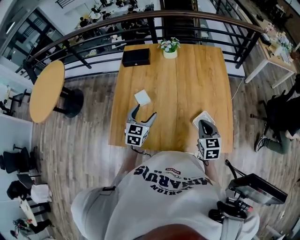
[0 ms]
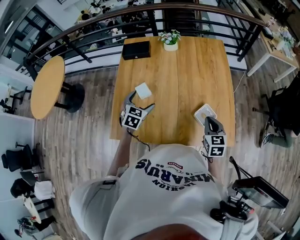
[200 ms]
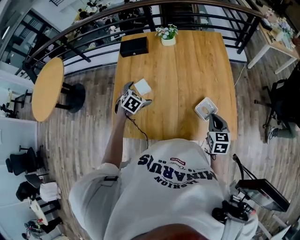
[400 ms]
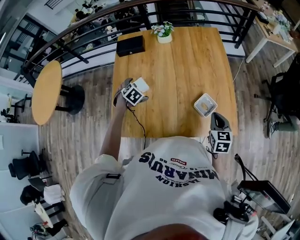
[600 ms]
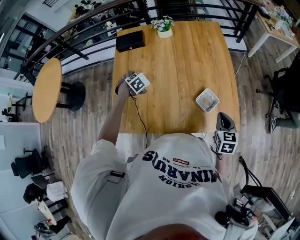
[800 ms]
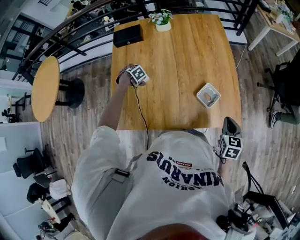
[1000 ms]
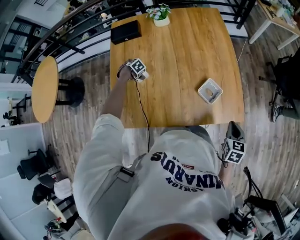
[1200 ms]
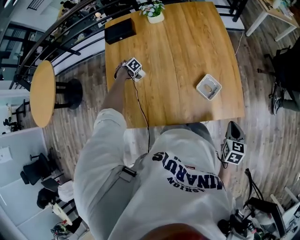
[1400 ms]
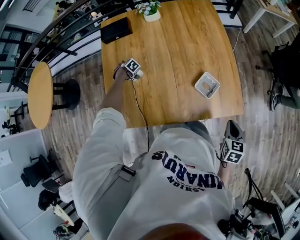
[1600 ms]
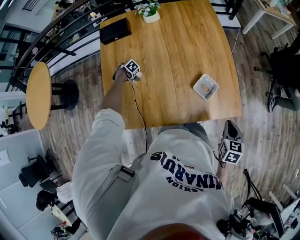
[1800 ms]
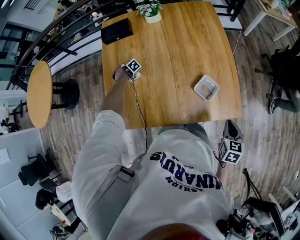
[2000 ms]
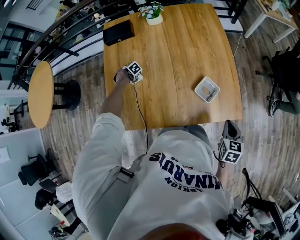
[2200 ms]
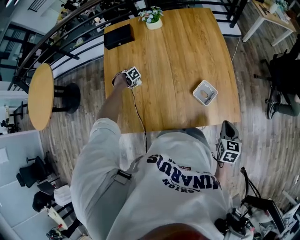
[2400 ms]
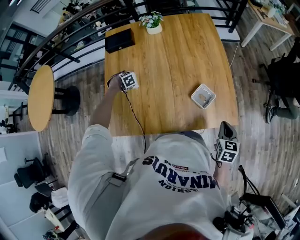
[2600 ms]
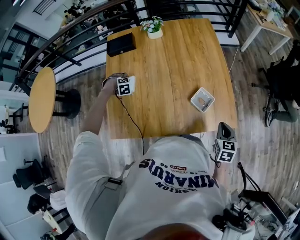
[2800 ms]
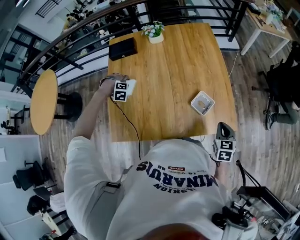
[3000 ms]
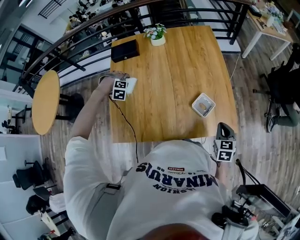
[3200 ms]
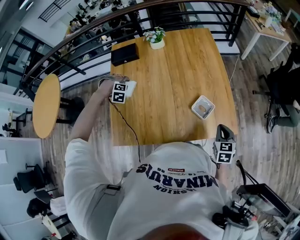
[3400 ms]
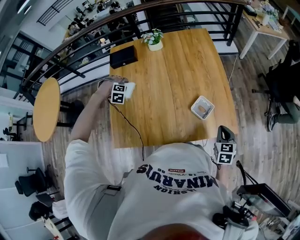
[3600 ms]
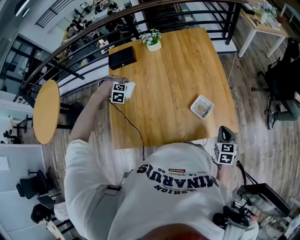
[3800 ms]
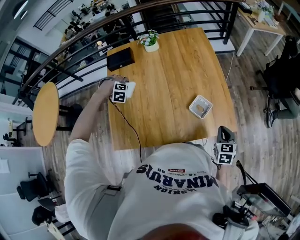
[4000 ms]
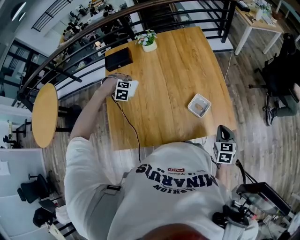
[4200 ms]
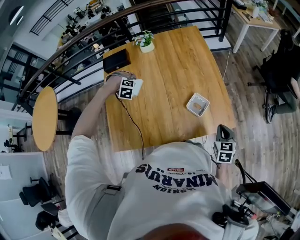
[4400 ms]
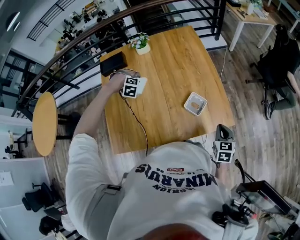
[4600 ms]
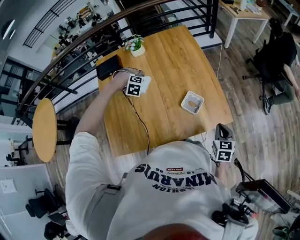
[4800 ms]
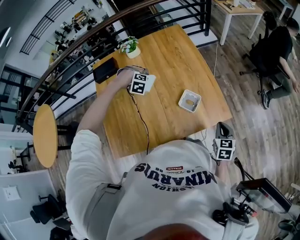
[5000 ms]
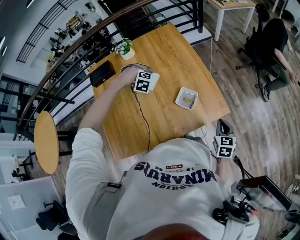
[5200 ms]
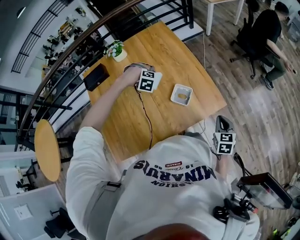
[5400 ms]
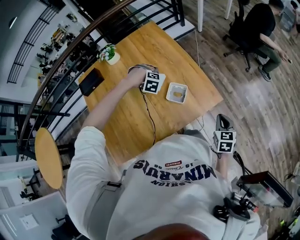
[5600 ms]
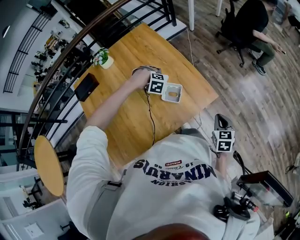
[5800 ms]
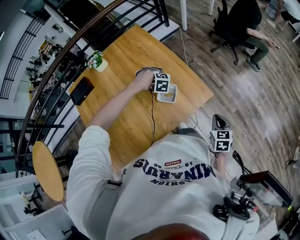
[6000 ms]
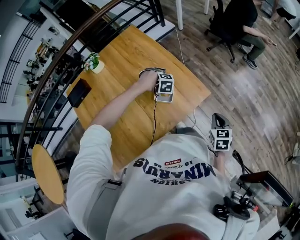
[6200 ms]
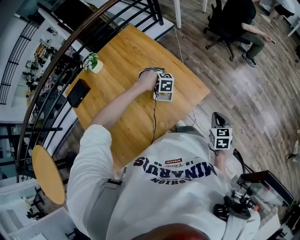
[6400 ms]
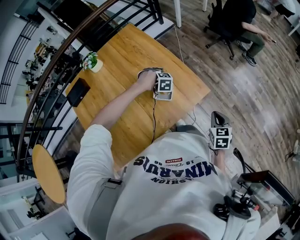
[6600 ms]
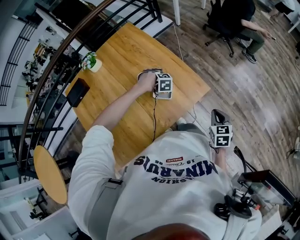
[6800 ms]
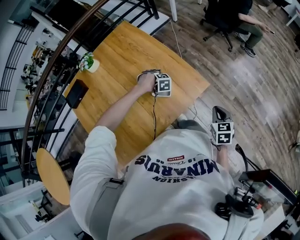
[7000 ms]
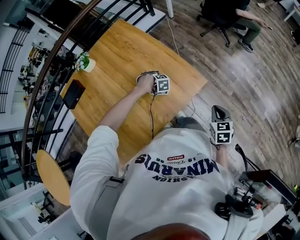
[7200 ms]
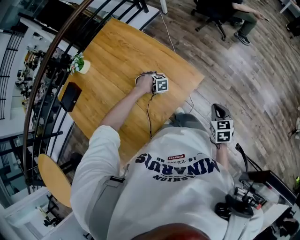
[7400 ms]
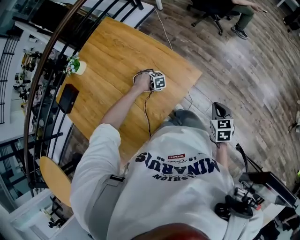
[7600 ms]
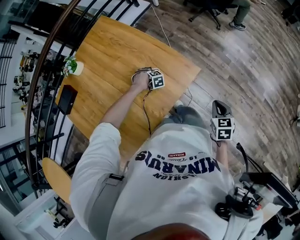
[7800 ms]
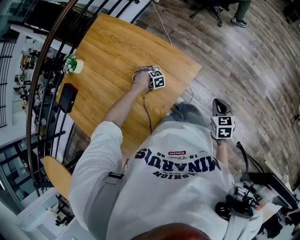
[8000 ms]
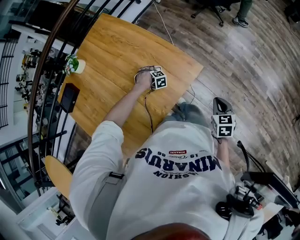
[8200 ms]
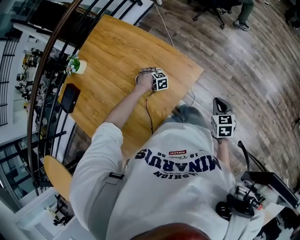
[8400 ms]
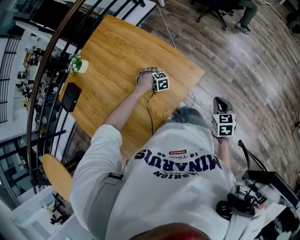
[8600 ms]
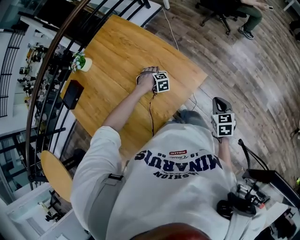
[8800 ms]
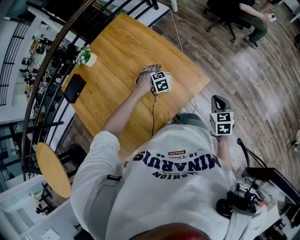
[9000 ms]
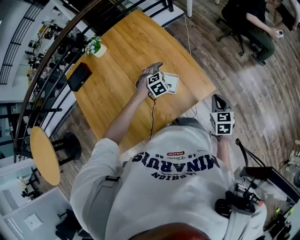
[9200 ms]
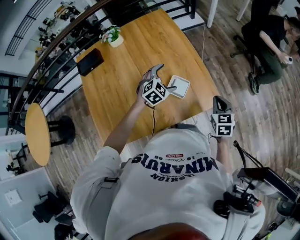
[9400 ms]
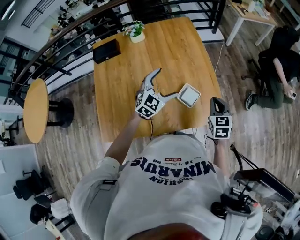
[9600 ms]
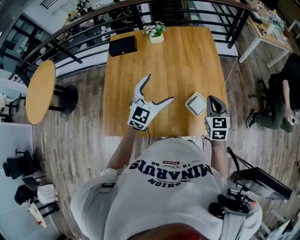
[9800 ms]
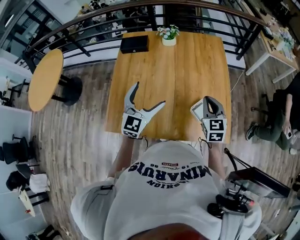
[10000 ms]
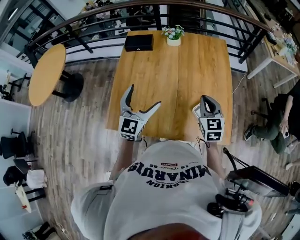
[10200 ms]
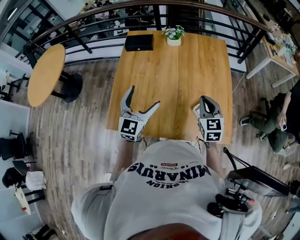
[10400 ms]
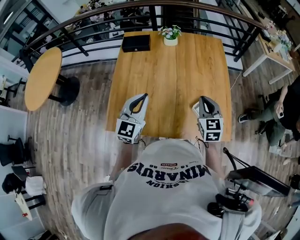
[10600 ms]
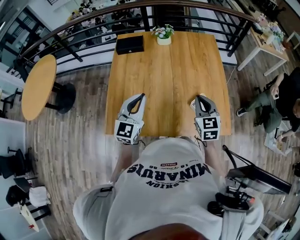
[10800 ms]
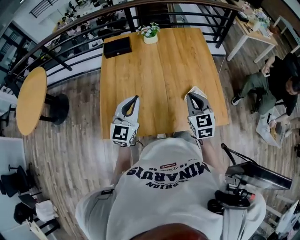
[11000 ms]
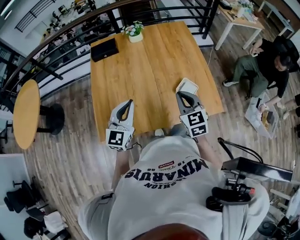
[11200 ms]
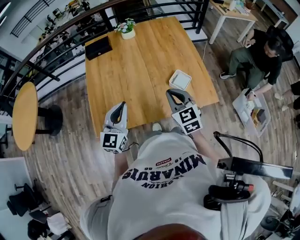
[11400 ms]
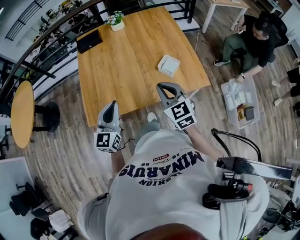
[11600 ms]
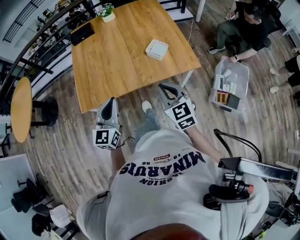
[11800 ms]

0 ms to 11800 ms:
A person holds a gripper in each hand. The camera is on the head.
0 ms to 1400 ms: The left gripper goes approximately 30 cm downward, tilts its fingers about 60 degrees downward, and opens. The right gripper changes place by some 20 cm, and changes its angle by approximately 30 degrees.
1400 ms to 3000 ms: The left gripper heads upward, covering approximately 15 cm, twists approximately 60 degrees clockwise, seen from behind, and closes up.
3000 ms to 4400 ms: The left gripper goes approximately 10 cm to the right.
4400 ms to 6000 ms: The right gripper moves roughly 15 cm, and changes its angle by approximately 20 degrees. Meanwhile the left gripper shifts by about 40 cm, and rotates some 20 degrees.
6000 ms to 7400 ms: The left gripper is displaced downward by roughly 15 cm.
7400 ms to 8800 ms: The grippers move only a little.
8800 ms to 10400 ms: The right gripper changes place by some 40 cm, and swivels roughly 60 degrees, while the left gripper heads upward, covering roughly 40 cm, and tips its fingers upward by approximately 80 degrees.
10400 ms to 11800 ms: Both grippers travel together backward, roughly 30 cm. The left gripper closes its fingers.

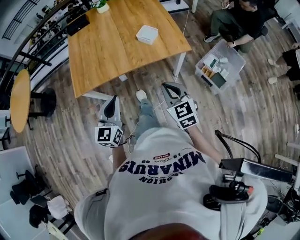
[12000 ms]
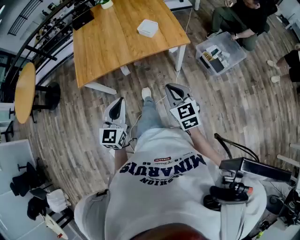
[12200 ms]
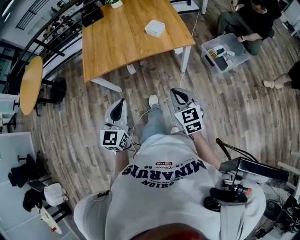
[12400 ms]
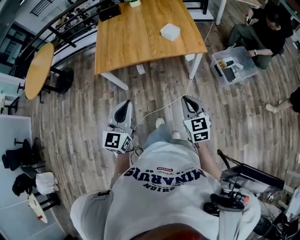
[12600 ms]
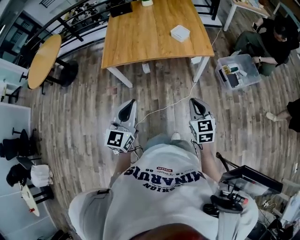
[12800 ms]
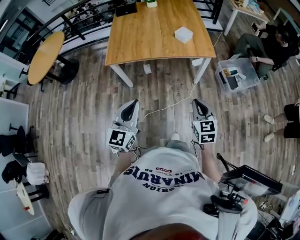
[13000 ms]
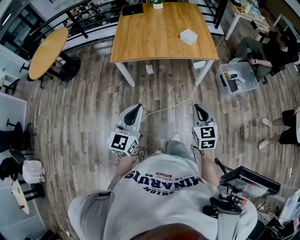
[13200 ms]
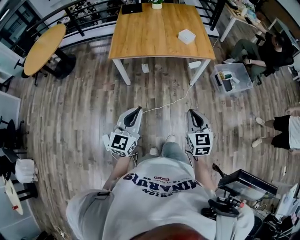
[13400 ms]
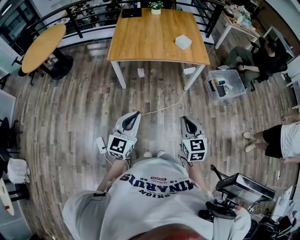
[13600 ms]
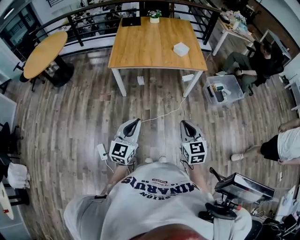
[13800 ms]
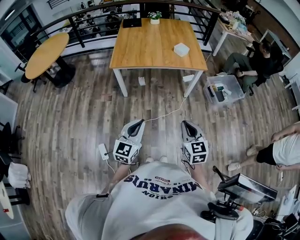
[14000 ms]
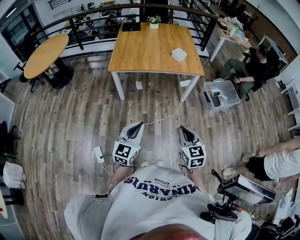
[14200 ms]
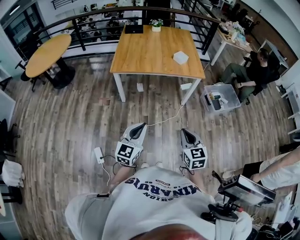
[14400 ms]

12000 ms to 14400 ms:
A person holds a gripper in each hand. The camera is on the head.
12000 ms to 13200 ms: The two grippers go approximately 30 cm backward.
13200 ms to 14400 ms: The two grippers go roughly 15 cm backward.

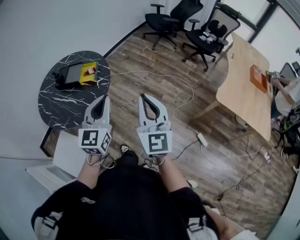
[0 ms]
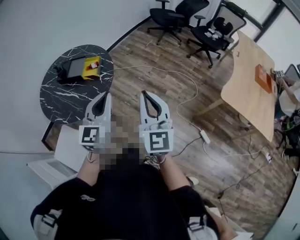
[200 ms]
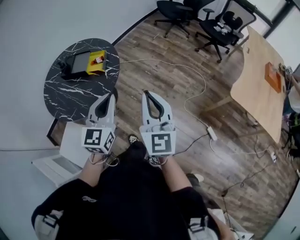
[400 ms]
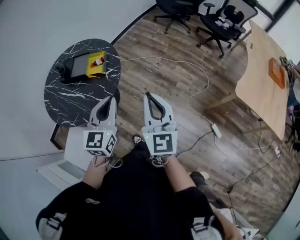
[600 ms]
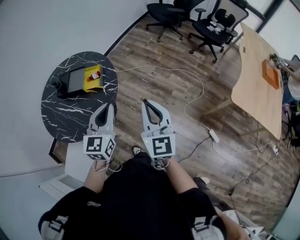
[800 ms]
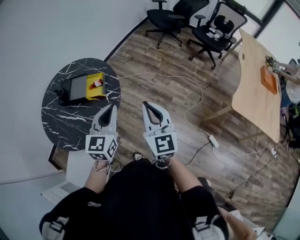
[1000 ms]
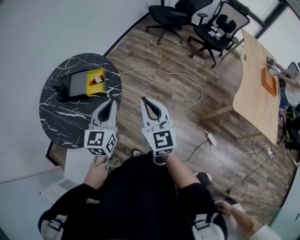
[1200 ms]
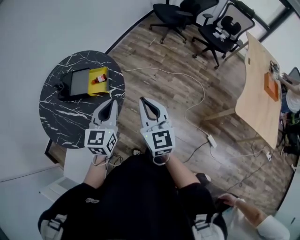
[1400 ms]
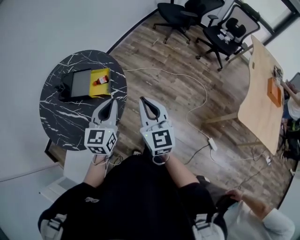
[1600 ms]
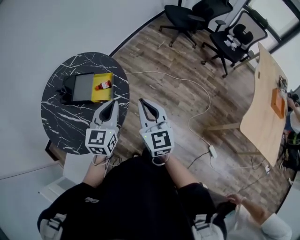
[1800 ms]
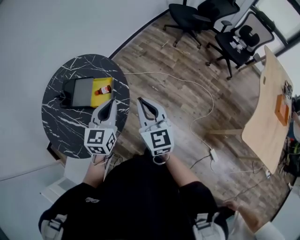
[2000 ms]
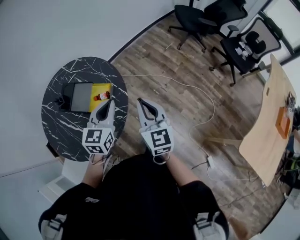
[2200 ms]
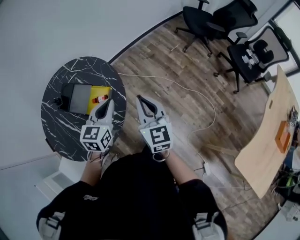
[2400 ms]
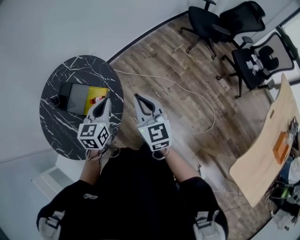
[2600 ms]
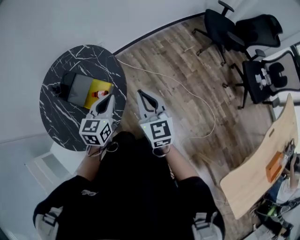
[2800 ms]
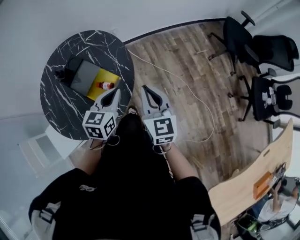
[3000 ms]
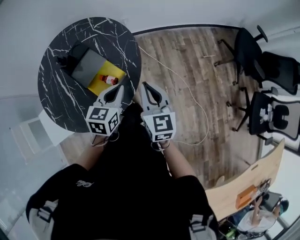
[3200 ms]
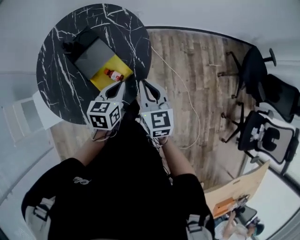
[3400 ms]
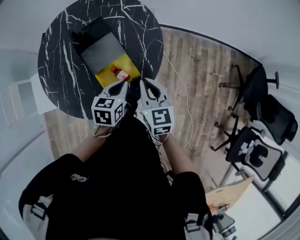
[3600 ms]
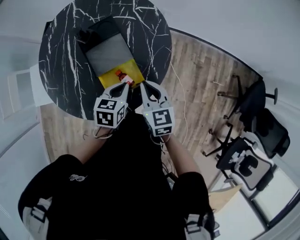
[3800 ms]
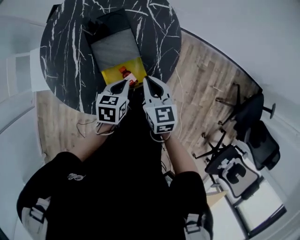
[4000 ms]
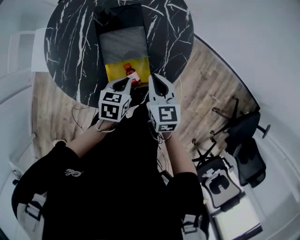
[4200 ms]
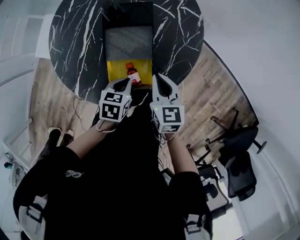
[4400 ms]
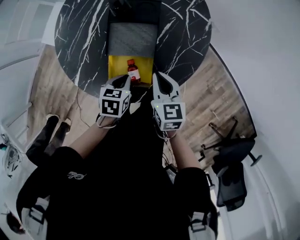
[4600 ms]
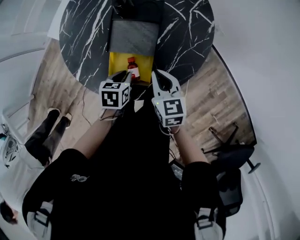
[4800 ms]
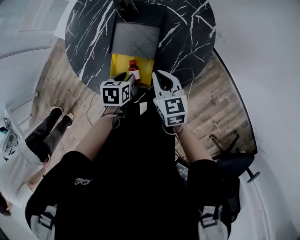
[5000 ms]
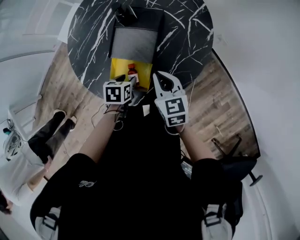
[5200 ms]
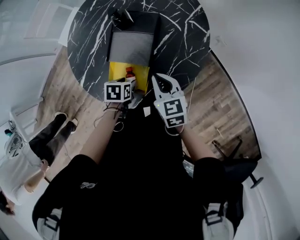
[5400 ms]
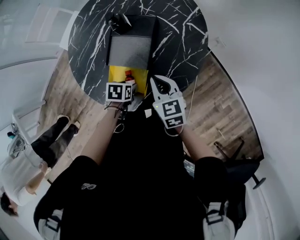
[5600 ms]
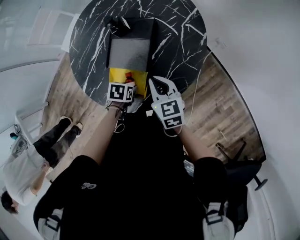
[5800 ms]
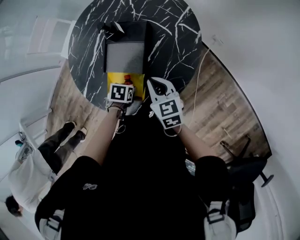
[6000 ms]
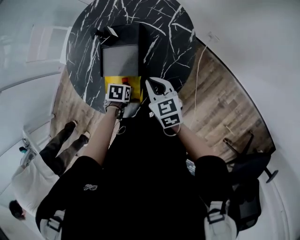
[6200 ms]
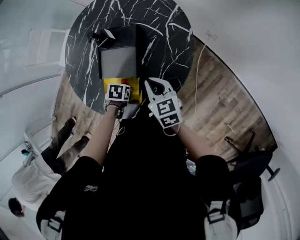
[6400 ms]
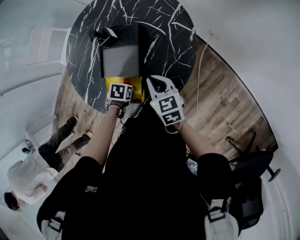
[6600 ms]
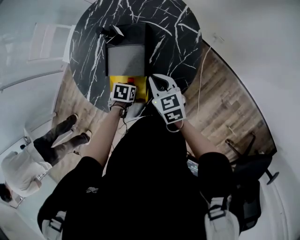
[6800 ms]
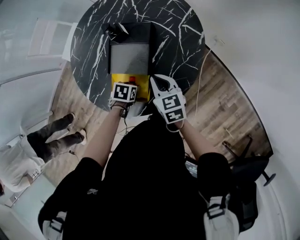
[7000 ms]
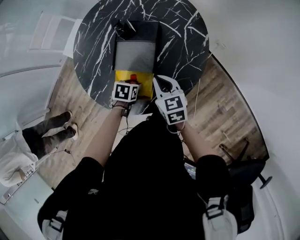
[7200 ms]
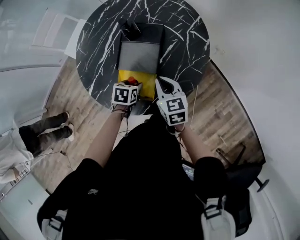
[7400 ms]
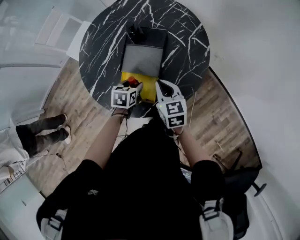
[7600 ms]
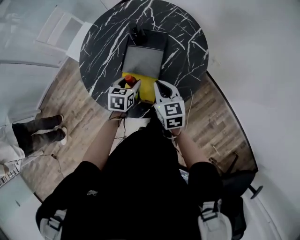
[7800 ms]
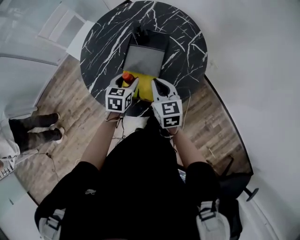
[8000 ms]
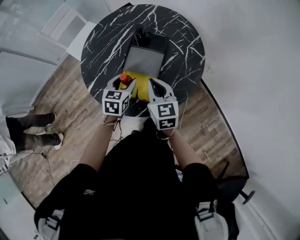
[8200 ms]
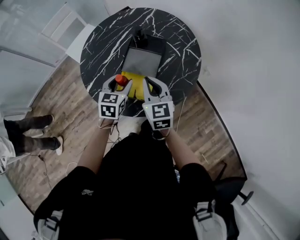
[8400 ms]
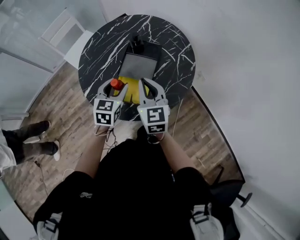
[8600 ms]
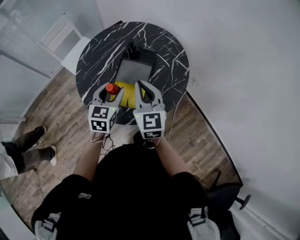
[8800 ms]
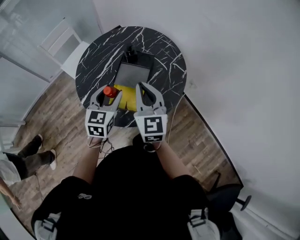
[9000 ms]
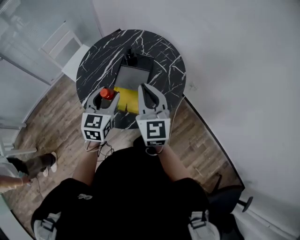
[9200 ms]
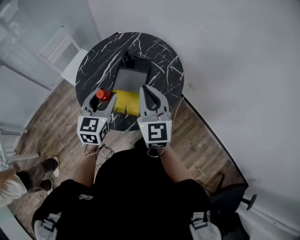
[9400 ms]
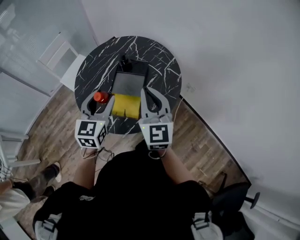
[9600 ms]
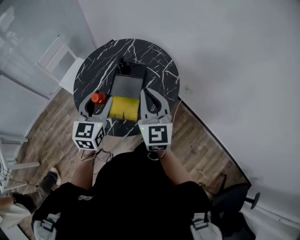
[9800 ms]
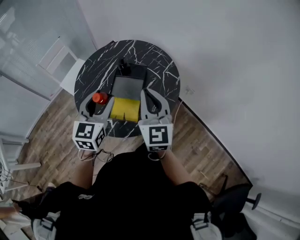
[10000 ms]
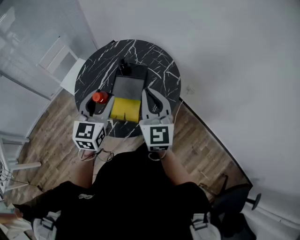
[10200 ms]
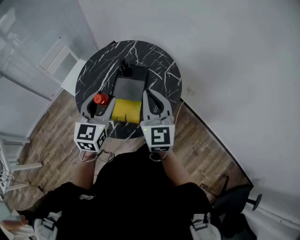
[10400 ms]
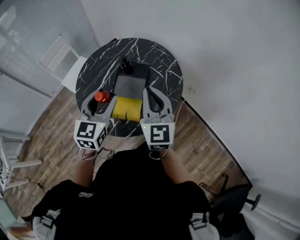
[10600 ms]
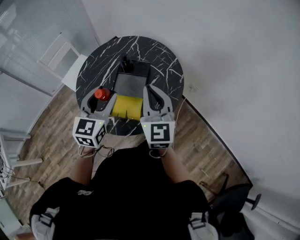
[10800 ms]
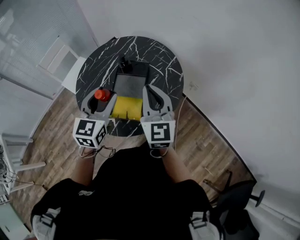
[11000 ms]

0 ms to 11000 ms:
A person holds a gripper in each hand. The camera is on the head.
0 ms to 1600 ms: Both grippers move forward and to the left, approximately 25 cm.
1600 ms to 3200 ms: The left gripper ends up about 30 cm from where it was, and changes its angle by approximately 40 degrees; the right gripper shifts by roughly 35 cm, and rotates roughly 40 degrees.
3200 ms to 4800 ms: The left gripper goes about 20 cm downward, and tilts its fingers roughly 30 degrees downward. The right gripper ends up approximately 30 cm from where it was, and swivels some 70 degrees.
4800 ms to 6200 ms: The right gripper ends up approximately 5 cm from where it was. Meanwhile the left gripper shifts about 5 cm downward, turns by approximately 20 degrees, and opens.
6200 ms to 7800 ms: The left gripper heads upward, covering roughly 10 cm, and tilts its fingers about 40 degrees upward, while the right gripper ends up roughly 5 cm from where it was.
7800 ms to 9400 ms: The two grippers go about 25 cm upward. The right gripper turns by roughly 30 degrees; the left gripper angles its fingers upward, by some 30 degrees.
9400 ms to 11000 ms: The grippers move only a little.
